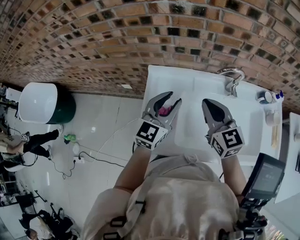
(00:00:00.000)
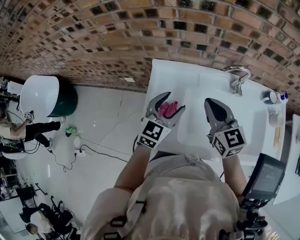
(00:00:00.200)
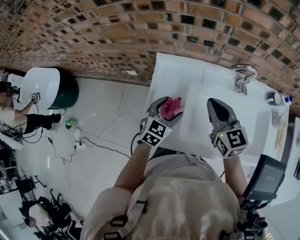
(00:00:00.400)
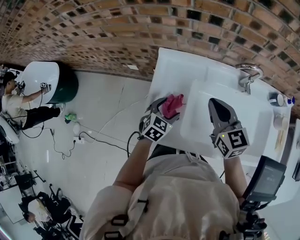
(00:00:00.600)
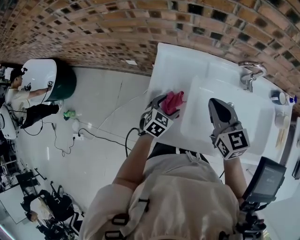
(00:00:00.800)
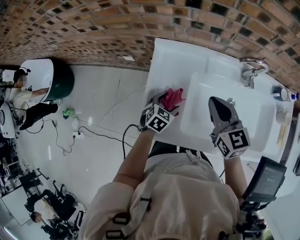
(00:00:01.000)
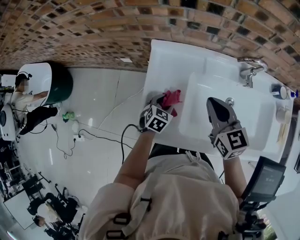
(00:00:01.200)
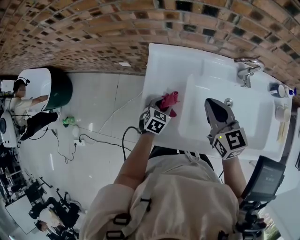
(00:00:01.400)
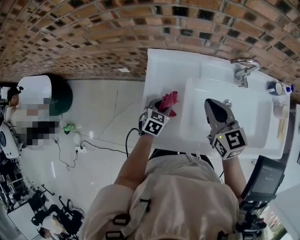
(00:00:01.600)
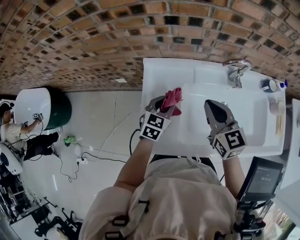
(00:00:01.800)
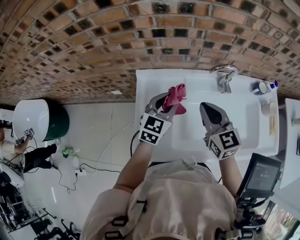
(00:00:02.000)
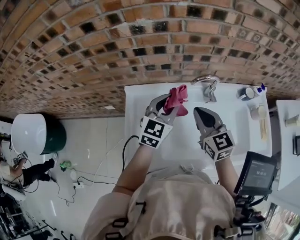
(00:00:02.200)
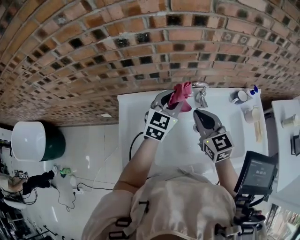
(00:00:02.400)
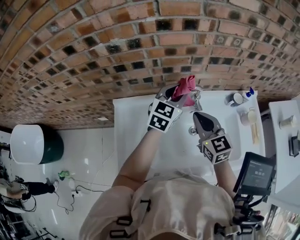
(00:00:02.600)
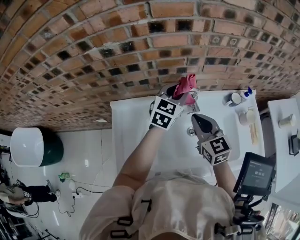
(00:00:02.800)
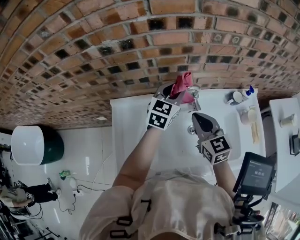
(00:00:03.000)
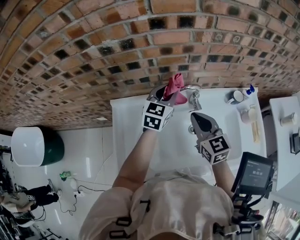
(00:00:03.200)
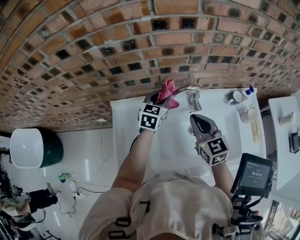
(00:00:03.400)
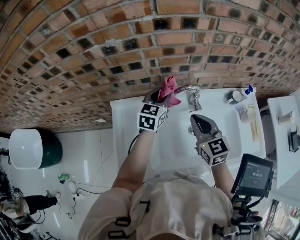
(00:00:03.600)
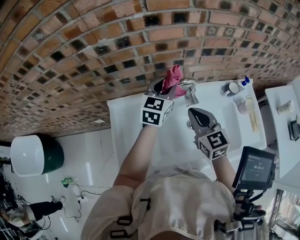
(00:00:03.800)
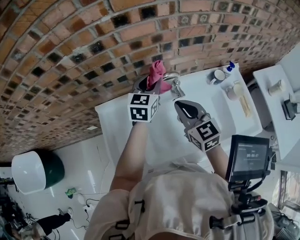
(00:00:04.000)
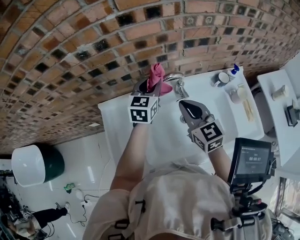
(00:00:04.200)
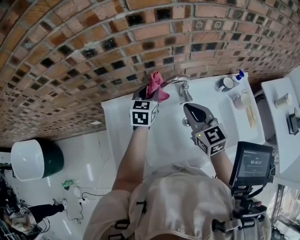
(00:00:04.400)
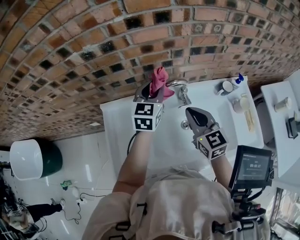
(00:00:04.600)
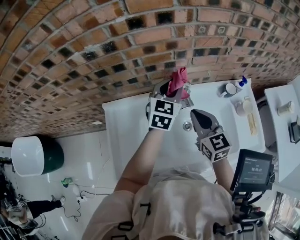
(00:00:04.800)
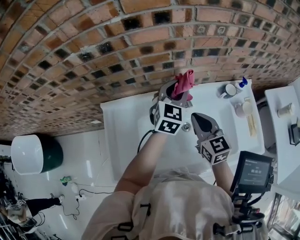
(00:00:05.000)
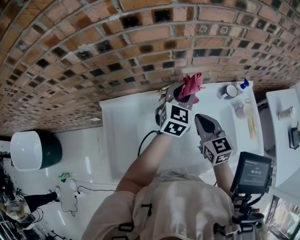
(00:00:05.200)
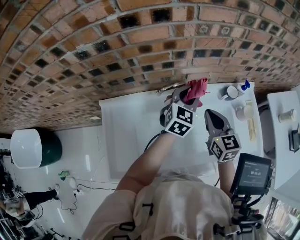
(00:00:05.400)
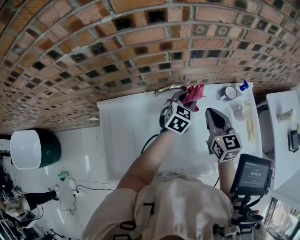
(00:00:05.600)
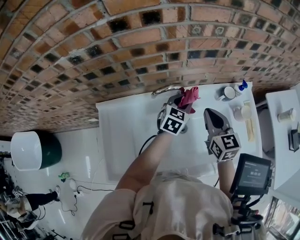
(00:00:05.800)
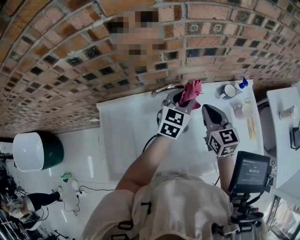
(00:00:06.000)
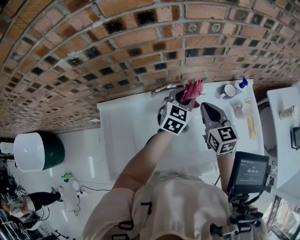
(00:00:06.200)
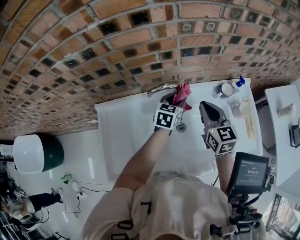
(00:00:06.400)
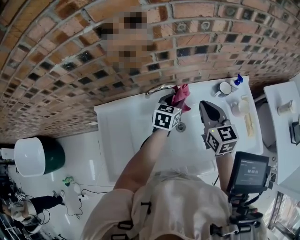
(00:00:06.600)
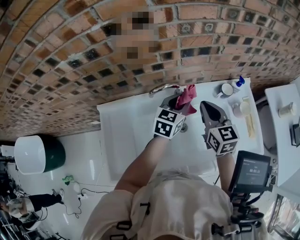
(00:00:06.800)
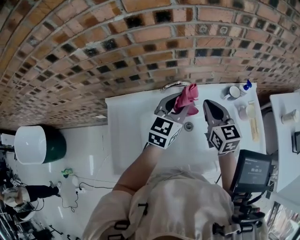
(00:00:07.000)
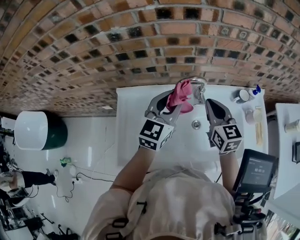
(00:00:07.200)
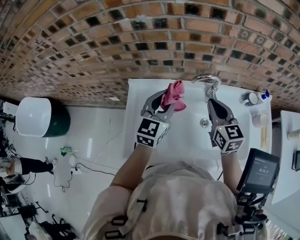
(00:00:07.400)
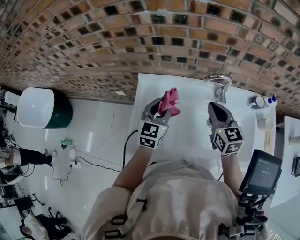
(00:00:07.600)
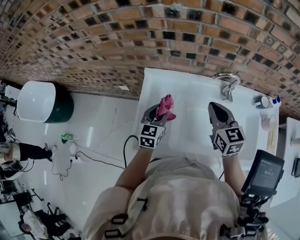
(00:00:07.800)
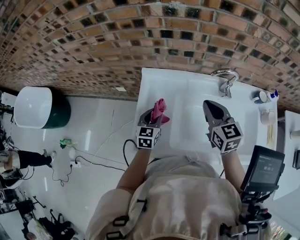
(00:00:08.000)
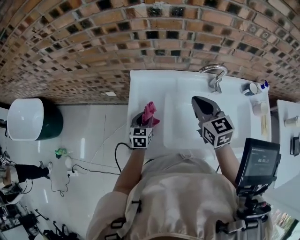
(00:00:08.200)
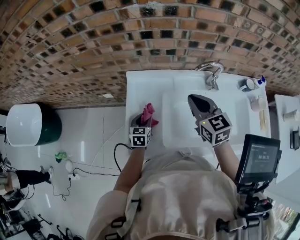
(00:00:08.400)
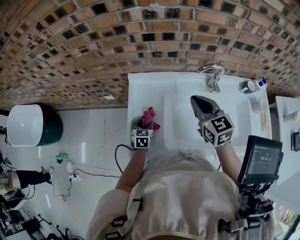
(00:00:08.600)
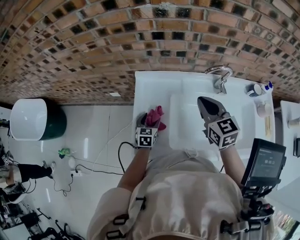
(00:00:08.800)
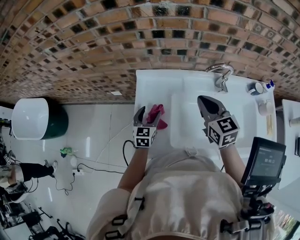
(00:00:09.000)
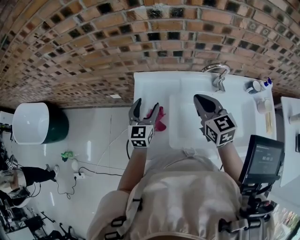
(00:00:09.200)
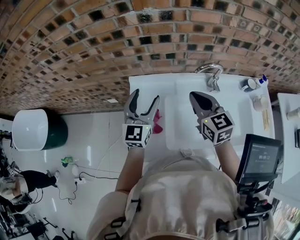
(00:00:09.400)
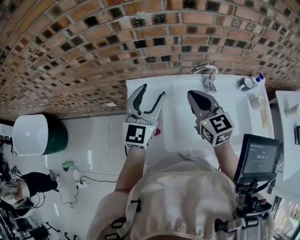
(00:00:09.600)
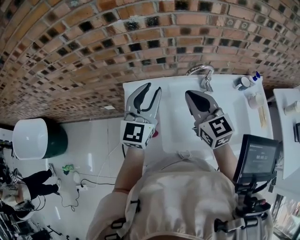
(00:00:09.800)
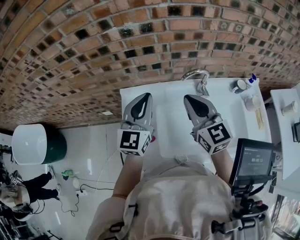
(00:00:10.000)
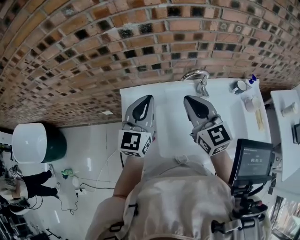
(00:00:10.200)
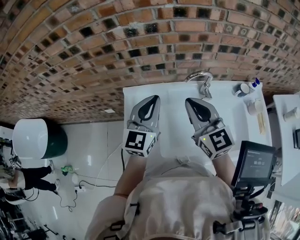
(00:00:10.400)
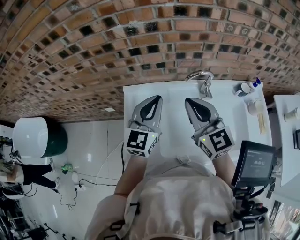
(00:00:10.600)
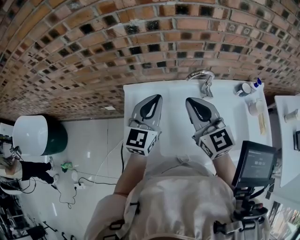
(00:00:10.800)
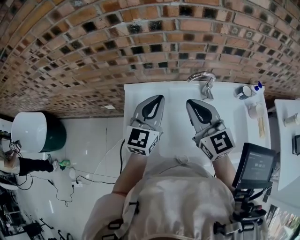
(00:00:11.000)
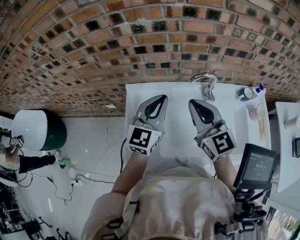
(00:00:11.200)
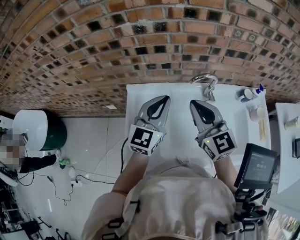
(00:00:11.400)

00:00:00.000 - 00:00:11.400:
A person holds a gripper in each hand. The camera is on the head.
00:00:00.000 - 00:00:01.400: The left gripper travels downward by about 30 cm, tips its fingers downward by some 40 degrees, and opens, then closes again, while the right gripper travels downward by some 10 cm.
00:00:01.400 - 00:00:02.800: The right gripper moves to the right, about 20 cm. The left gripper moves to the right, upward and forward, about 50 cm, and angles its fingers upward, by about 30 degrees.
00:00:04.200 - 00:00:05.600: The left gripper goes approximately 20 cm to the right and downward. Meanwhile the right gripper is displaced to the right by about 15 cm.
00:00:05.600 - 00:00:07.200: The right gripper goes about 10 cm to the left. Meanwhile the left gripper swings up and down, roughly 20 cm each way, with 2 reversals, and rotates about 20 degrees.
00:00:07.200 - 00:00:08.600: The left gripper travels downward and to the left by some 40 cm, and angles its fingers downward, by about 30 degrees, while the right gripper travels to the left by approximately 20 cm.
00:00:08.600 - 00:00:10.000: The left gripper moves upward, about 35 cm, points its fingers some 40 degrees further upward, and closes. The right gripper goes about 10 cm upward.
00:00:10.000 - 00:00:11.400: The grippers stay close to where they were, moving slightly.

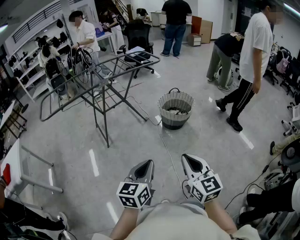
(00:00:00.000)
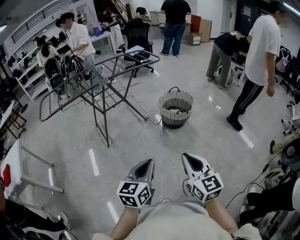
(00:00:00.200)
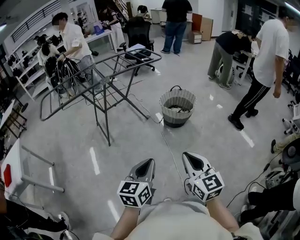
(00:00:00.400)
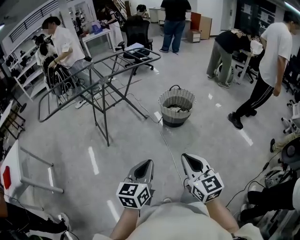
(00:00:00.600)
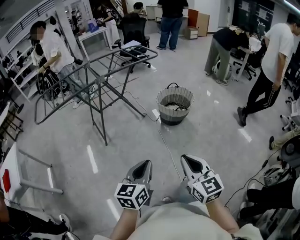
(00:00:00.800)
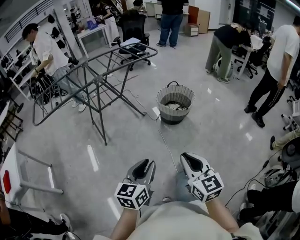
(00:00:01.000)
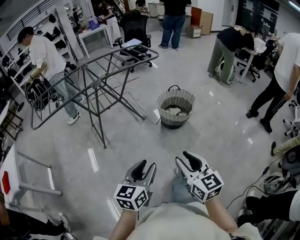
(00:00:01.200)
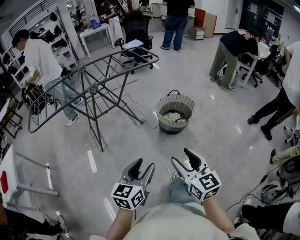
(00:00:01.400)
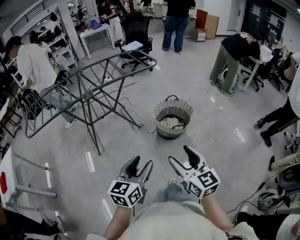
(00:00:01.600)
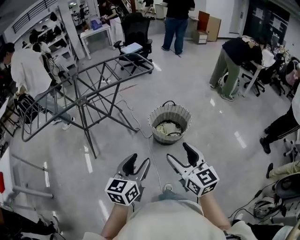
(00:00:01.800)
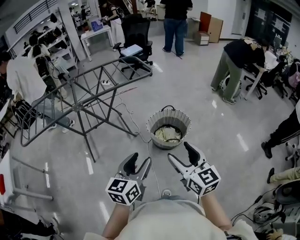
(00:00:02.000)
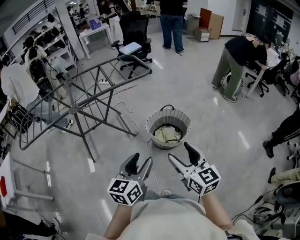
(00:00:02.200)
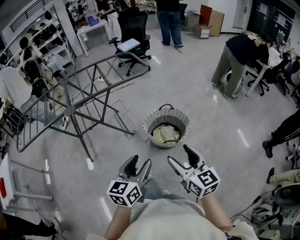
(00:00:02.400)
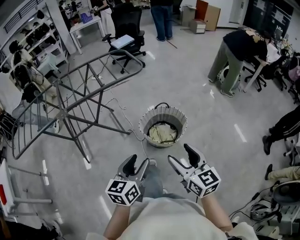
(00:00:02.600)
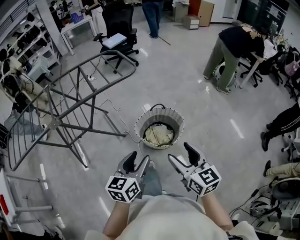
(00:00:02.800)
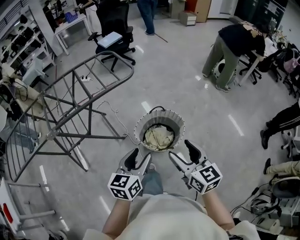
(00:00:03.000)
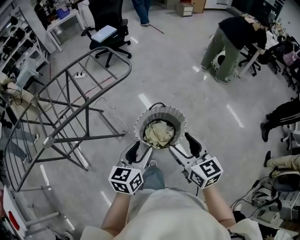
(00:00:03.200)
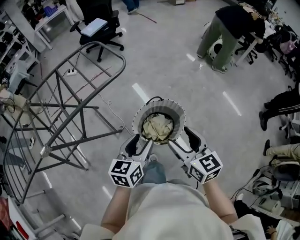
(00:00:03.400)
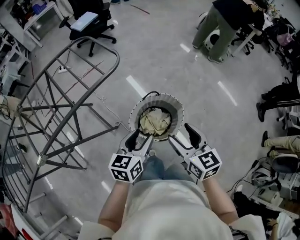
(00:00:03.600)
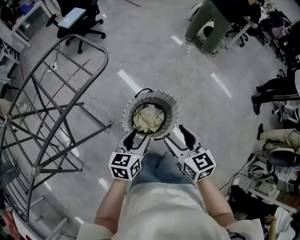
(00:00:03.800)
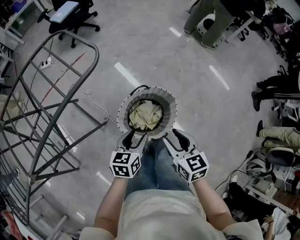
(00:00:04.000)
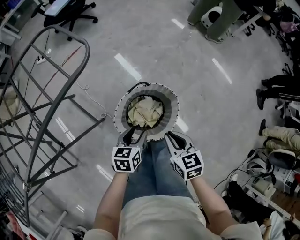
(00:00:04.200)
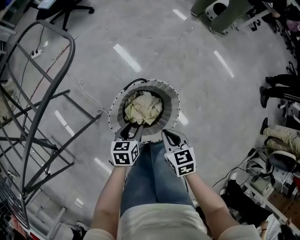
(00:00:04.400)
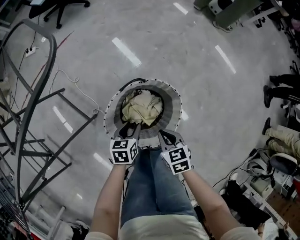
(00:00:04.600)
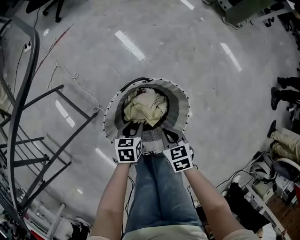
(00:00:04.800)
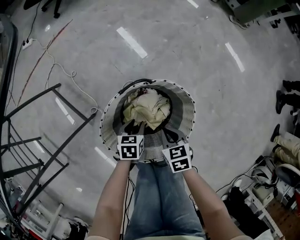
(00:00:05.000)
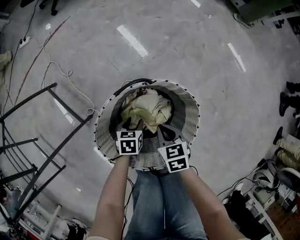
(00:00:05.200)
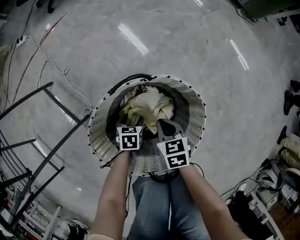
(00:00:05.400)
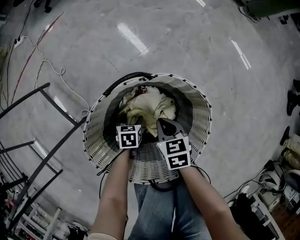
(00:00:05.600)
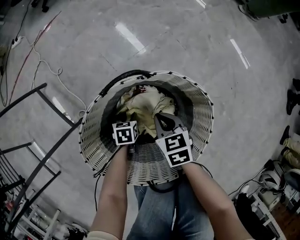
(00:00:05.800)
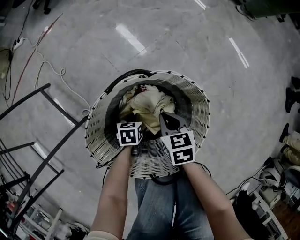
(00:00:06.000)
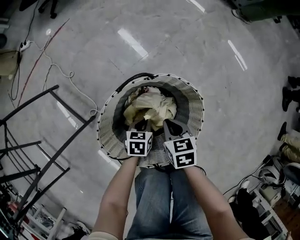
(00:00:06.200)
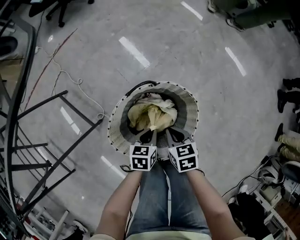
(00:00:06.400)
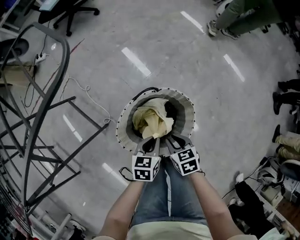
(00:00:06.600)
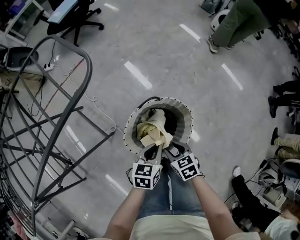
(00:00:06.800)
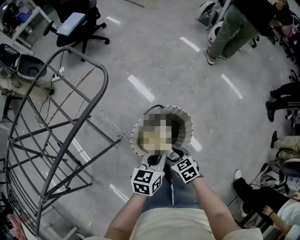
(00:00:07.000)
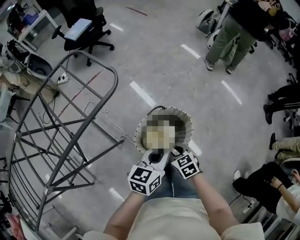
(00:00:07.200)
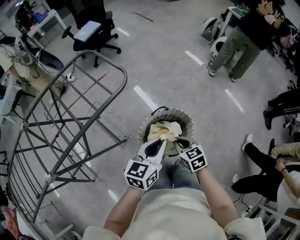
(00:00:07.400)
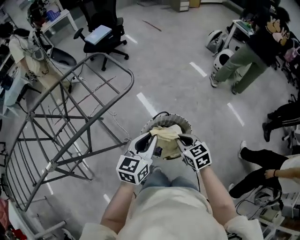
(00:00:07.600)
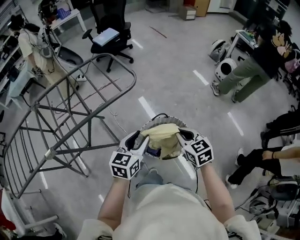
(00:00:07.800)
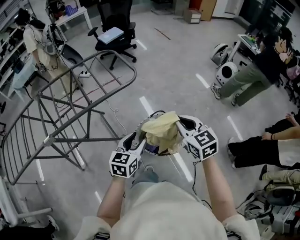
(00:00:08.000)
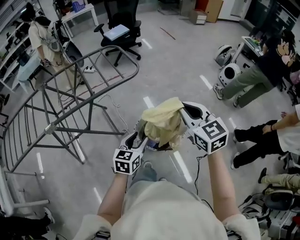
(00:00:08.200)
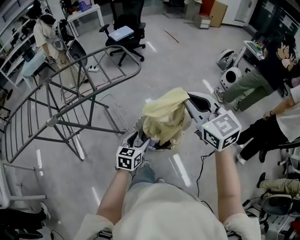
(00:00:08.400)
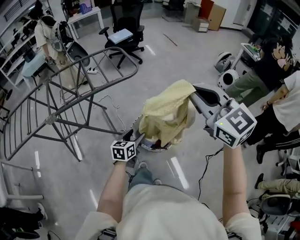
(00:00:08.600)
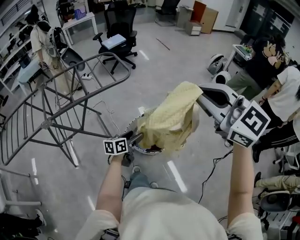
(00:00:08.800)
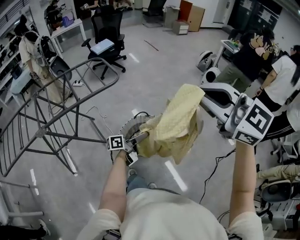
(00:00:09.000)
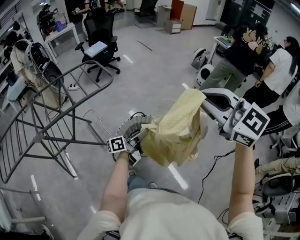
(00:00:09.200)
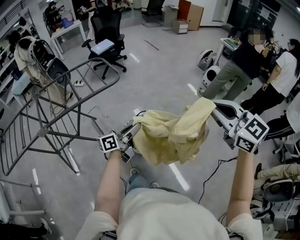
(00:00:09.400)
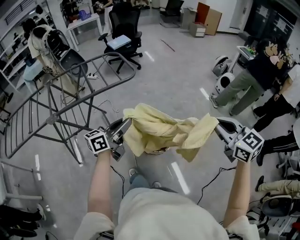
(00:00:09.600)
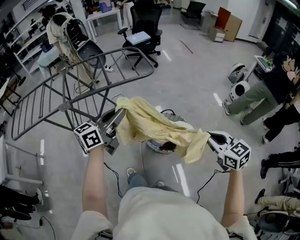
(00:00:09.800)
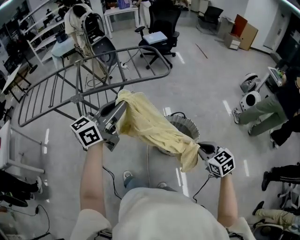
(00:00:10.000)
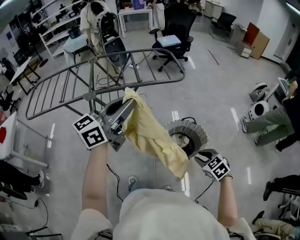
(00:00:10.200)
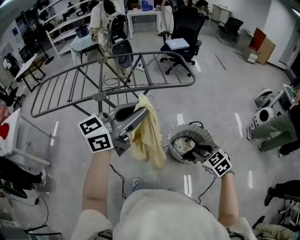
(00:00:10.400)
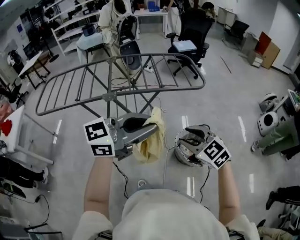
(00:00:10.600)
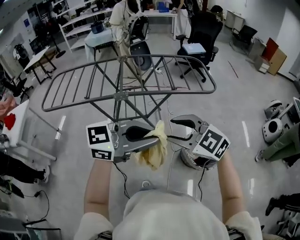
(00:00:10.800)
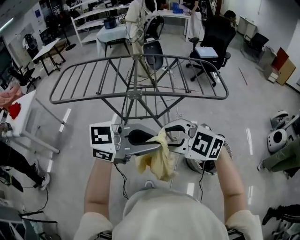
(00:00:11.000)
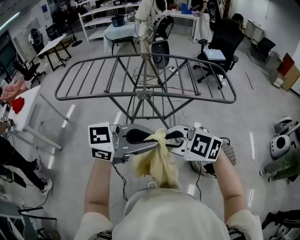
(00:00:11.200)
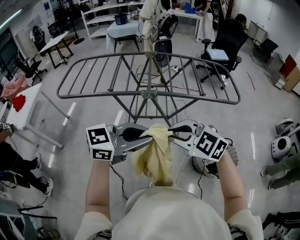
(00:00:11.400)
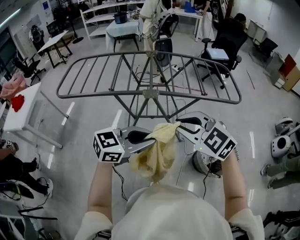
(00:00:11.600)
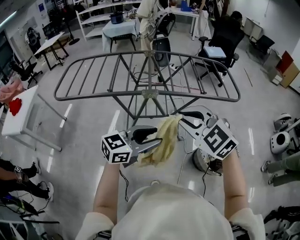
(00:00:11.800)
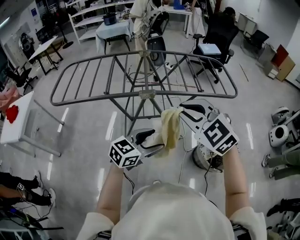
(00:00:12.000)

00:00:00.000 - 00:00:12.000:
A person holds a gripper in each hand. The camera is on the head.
00:00:00.000 - 00:00:01.600: The grippers both shift forward by roughly 25 cm. The right gripper opens up; the left gripper opens its fingers.
00:00:01.600 - 00:00:03.000: The grippers both shift forward by about 30 cm.
00:00:03.000 - 00:00:04.400: Both grippers travel together downward and forward, approximately 40 cm. The right gripper tilts its fingers roughly 30 degrees downward, and closes its fingers. Meanwhile the left gripper changes its angle by roughly 30 degrees.
00:00:04.400 - 00:00:06.000: Both grippers travel together downward, roughly 35 cm. The left gripper closes its fingers.
00:00:06.000 - 00:00:07.600: Both grippers move upward, about 60 cm. The right gripper rotates some 30 degrees, and opens, then closes once more. Meanwhile the left gripper points its fingers approximately 50 degrees further upward.
00:00:07.600 - 00:00:09.000: The left gripper goes roughly 15 cm backward, to the right and downward, rolls counterclockwise, seen from behind, by some 50 degrees, and opens its fingers. The right gripper travels upward and backward by approximately 40 cm, and changes its angle by about 50 degrees.
00:00:09.000 - 00:00:10.400: The right gripper shifts approximately 40 cm downward and to the left, tilts its fingers about 40 degrees downward, and opens, while the left gripper travels upward and to the left by roughly 40 cm, rolls clockwise, seen from behind, by some 60 degrees, and closes its fingers.
00:00:10.400 - 00:00:12.000: The right gripper changes place by some 50 cm, and rotates some 40 degrees, while the left gripper changes place by some 30 cm, turns by approximately 20 degrees, and opens.
